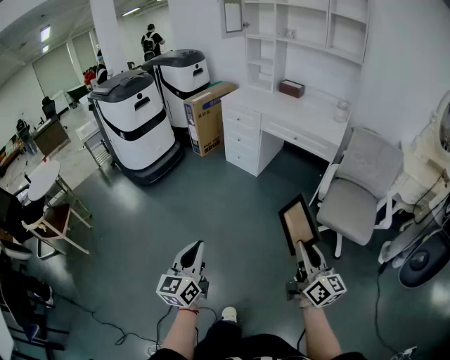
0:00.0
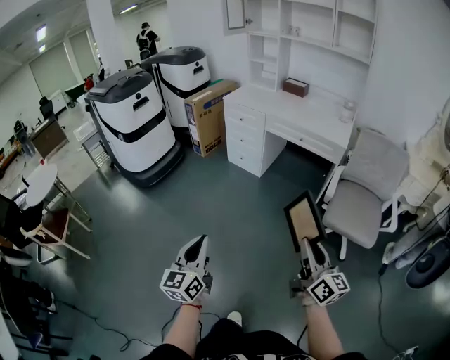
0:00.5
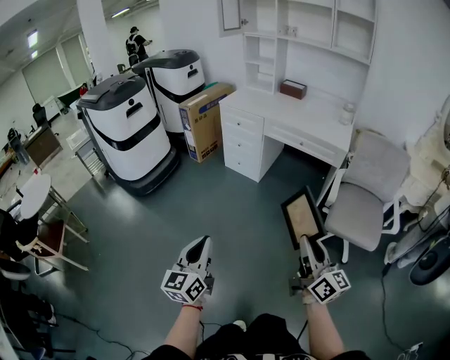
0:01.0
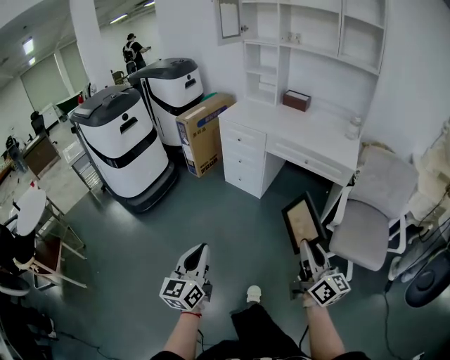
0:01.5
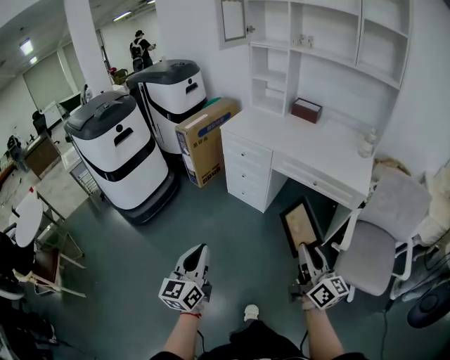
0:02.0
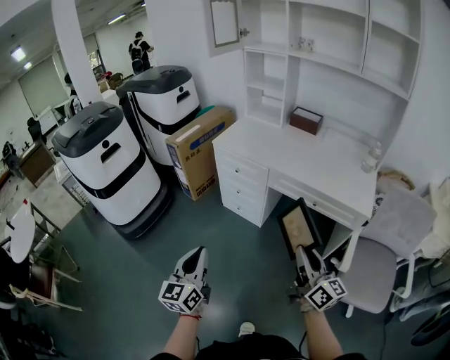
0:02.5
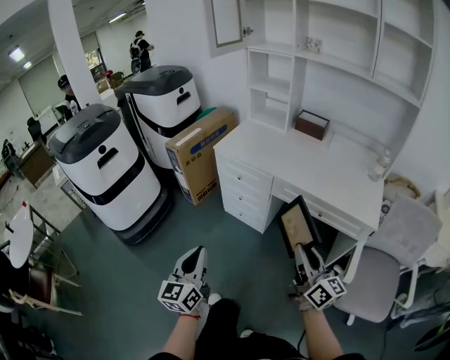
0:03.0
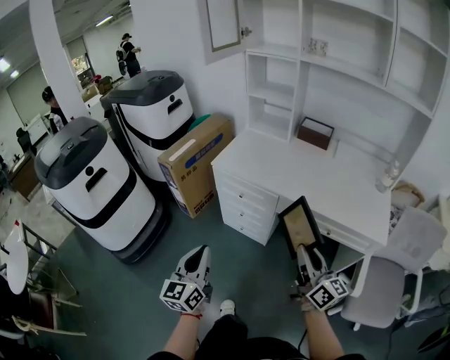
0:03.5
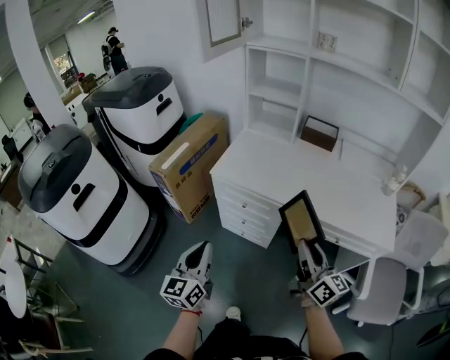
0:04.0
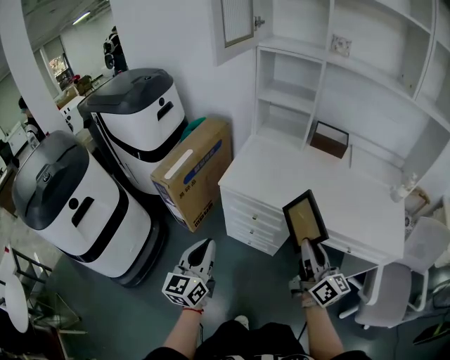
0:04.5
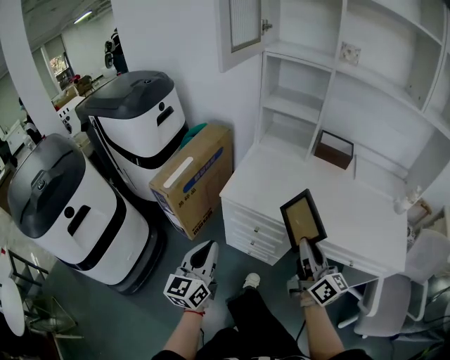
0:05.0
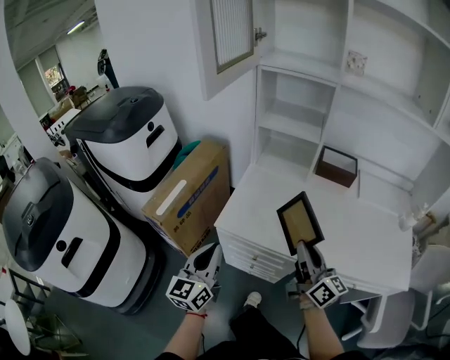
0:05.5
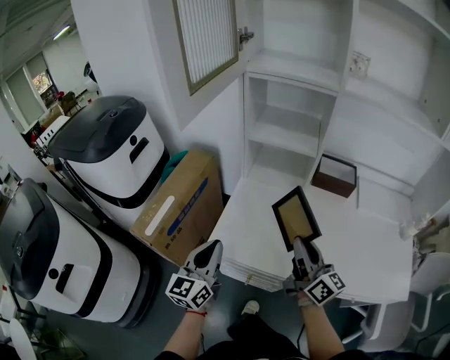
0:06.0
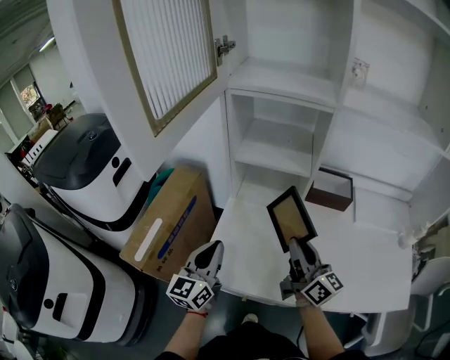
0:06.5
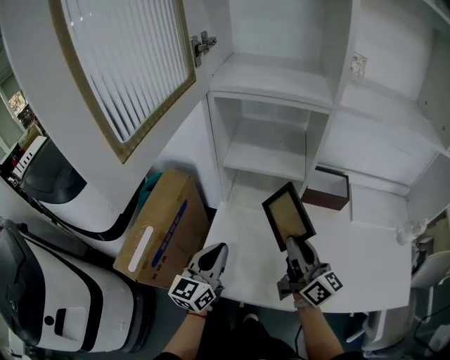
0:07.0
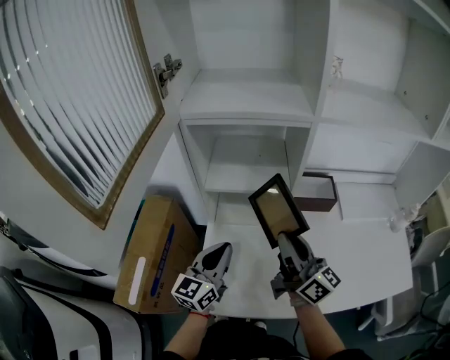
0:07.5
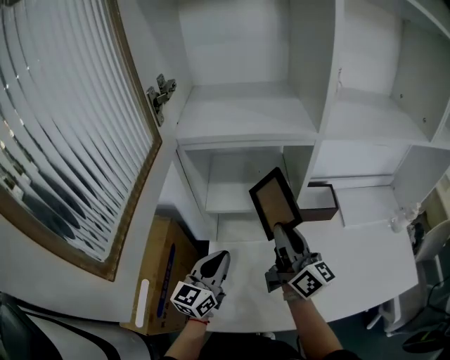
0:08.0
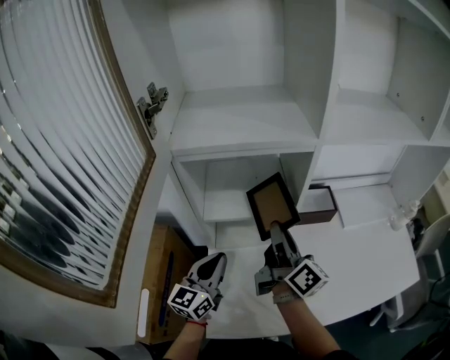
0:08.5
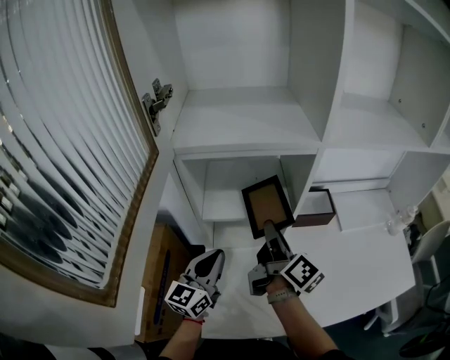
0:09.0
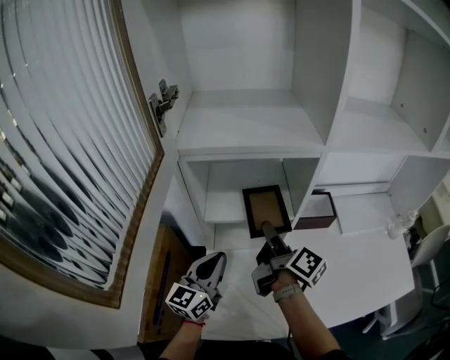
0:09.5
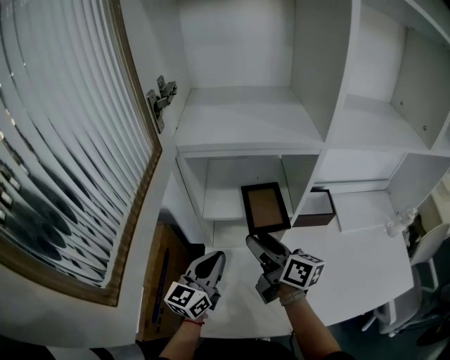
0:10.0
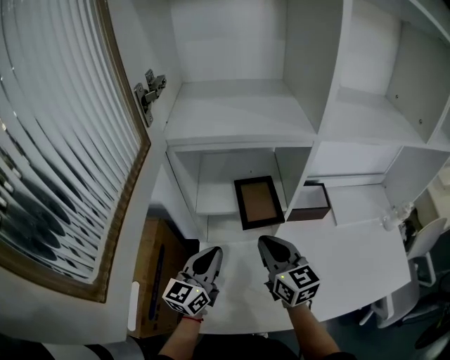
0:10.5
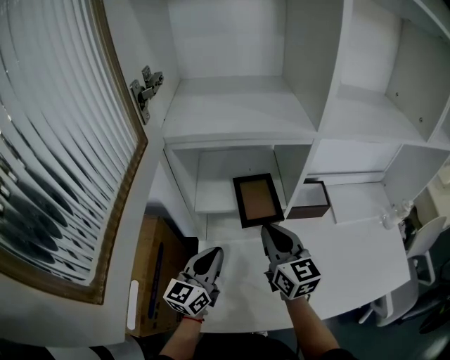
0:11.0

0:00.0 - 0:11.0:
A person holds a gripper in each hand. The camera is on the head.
0:00.0 - 0:02.0: Both grippers are carried forward, about 40 cm.
0:02.0 - 0:03.5: Both grippers move forward, roughly 35 cm.
0:03.5 - 0:05.5: Both grippers move forward, roughly 35 cm.
0:05.5 - 0:07.5: The grippers both shift forward by roughly 30 cm. The left gripper rotates approximately 30 degrees.
0:07.5 - 0:09.0: The right gripper travels forward by roughly 10 cm, and changes its angle by approximately 30 degrees; the left gripper heads forward, covering about 5 cm.
0:09.0 - 0:11.0: The right gripper twists some 50 degrees counterclockwise, seen from behind, and opens, then closes once more.

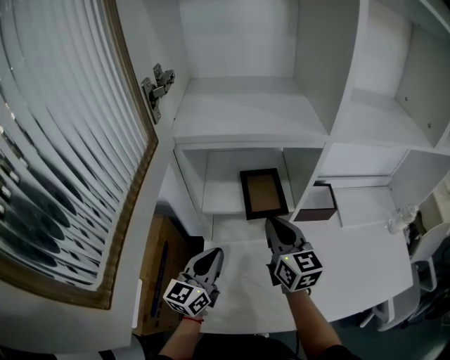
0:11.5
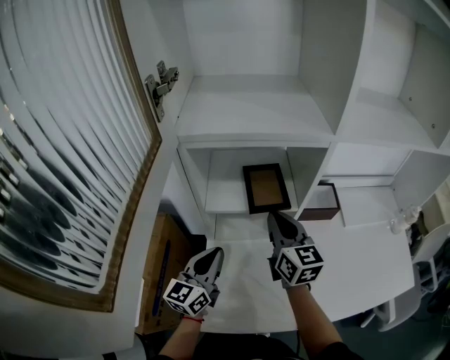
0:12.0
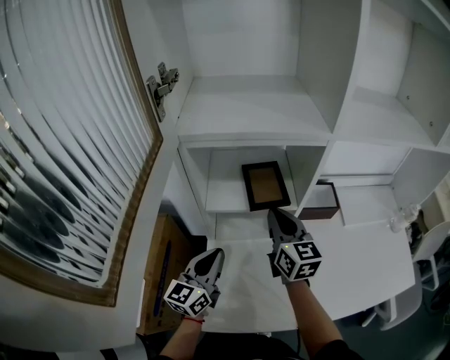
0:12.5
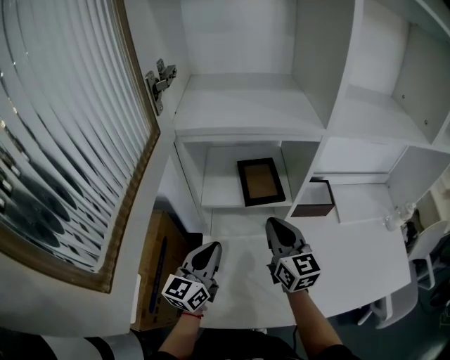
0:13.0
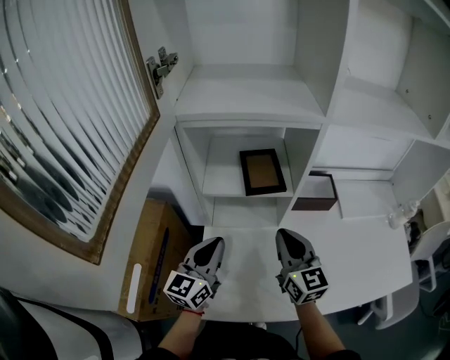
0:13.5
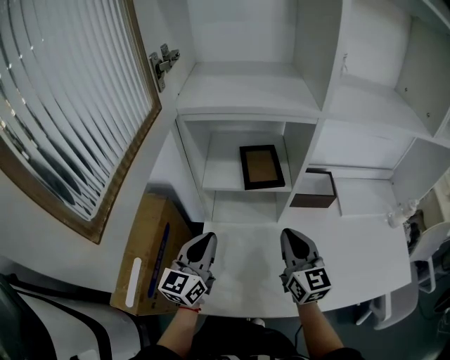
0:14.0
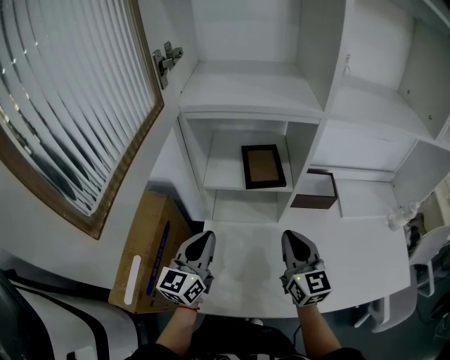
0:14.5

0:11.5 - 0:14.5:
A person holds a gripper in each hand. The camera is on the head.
0:11.5 - 0:13.0: The grippers stay close to where they were, moving slightly.
0:13.0 - 0:14.5: The right gripper moves backward, some 5 cm.

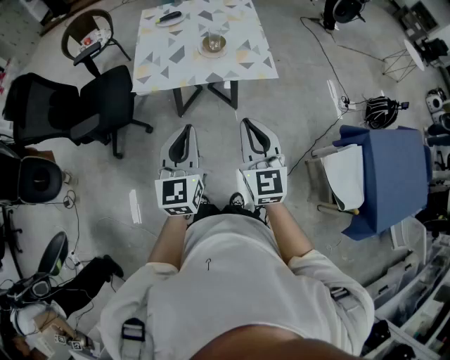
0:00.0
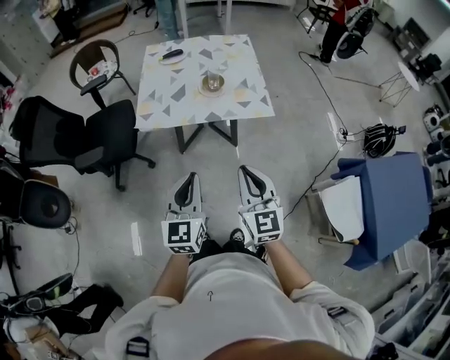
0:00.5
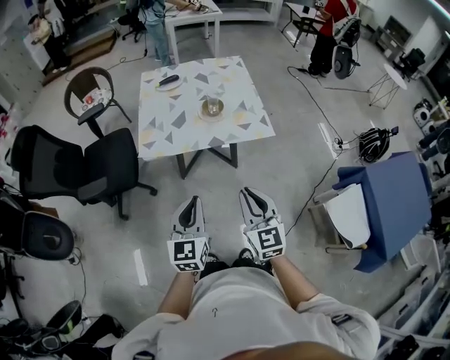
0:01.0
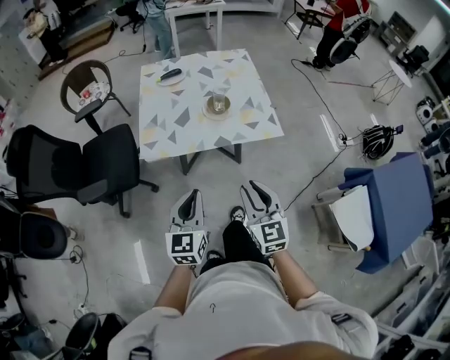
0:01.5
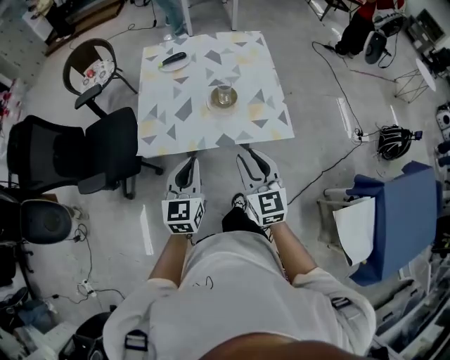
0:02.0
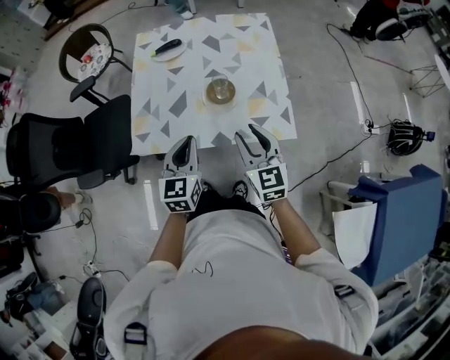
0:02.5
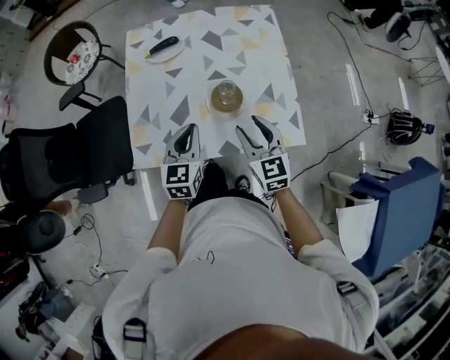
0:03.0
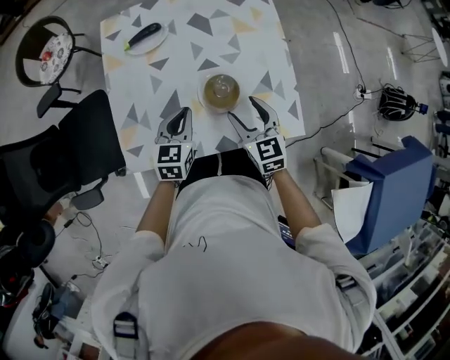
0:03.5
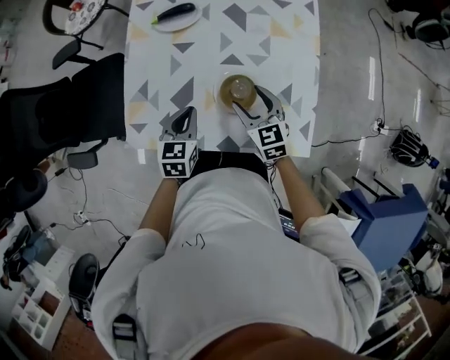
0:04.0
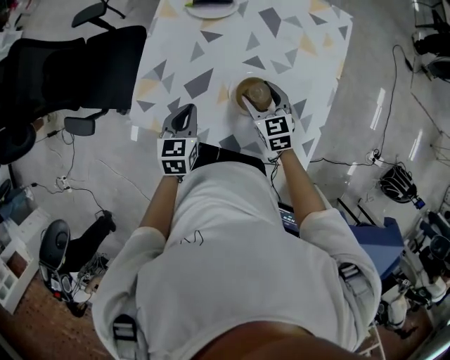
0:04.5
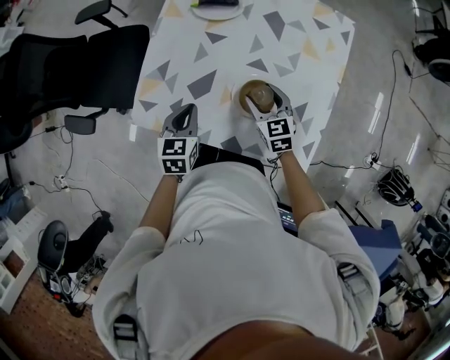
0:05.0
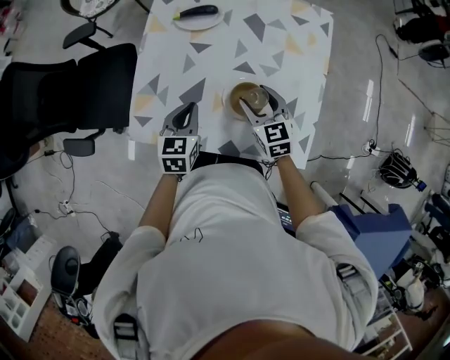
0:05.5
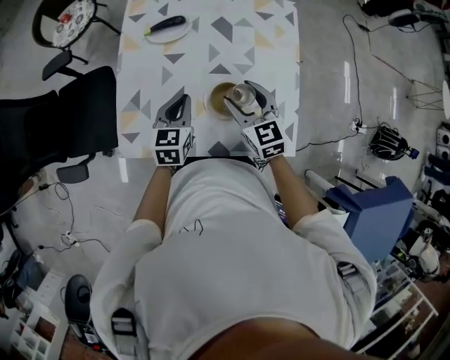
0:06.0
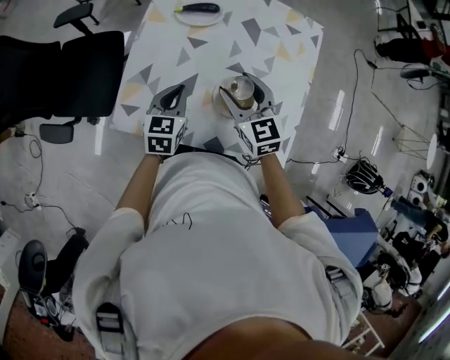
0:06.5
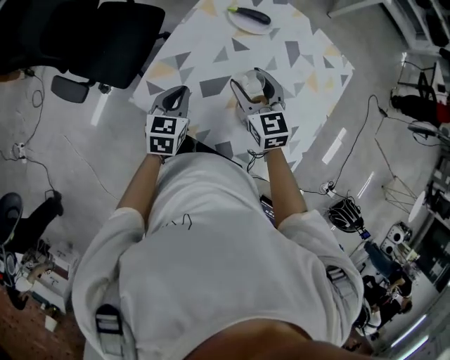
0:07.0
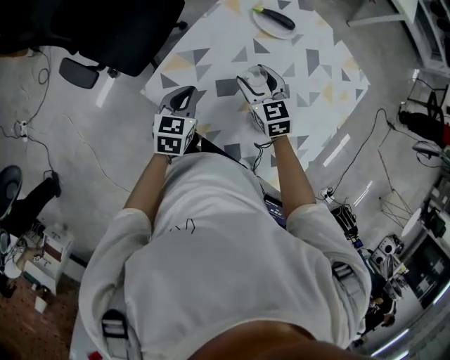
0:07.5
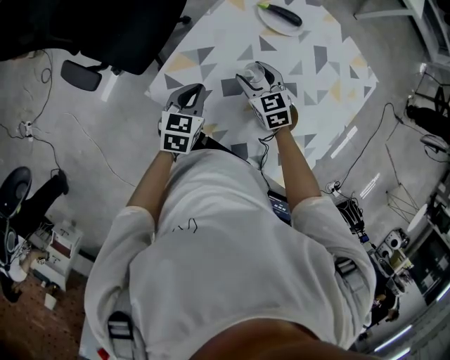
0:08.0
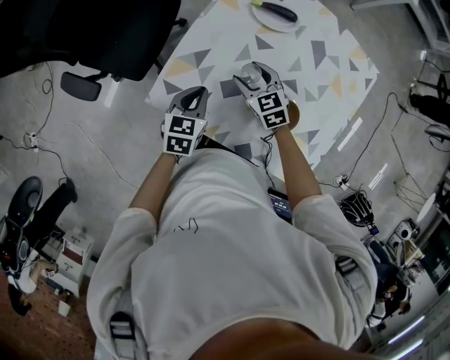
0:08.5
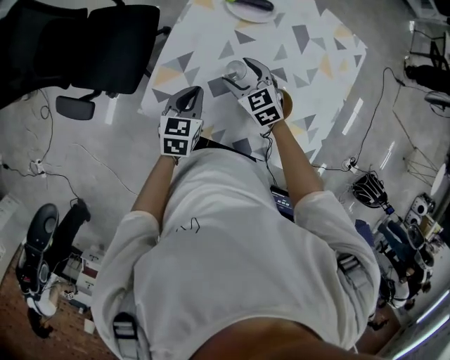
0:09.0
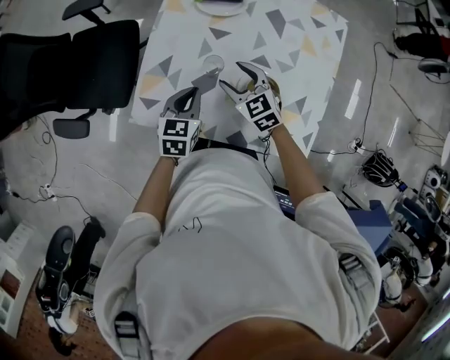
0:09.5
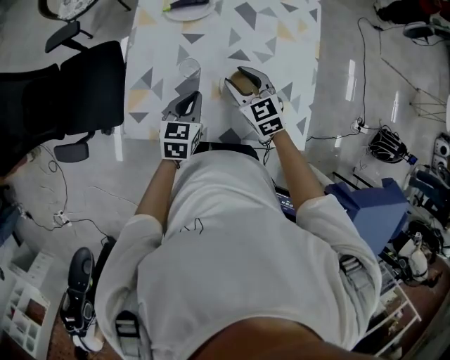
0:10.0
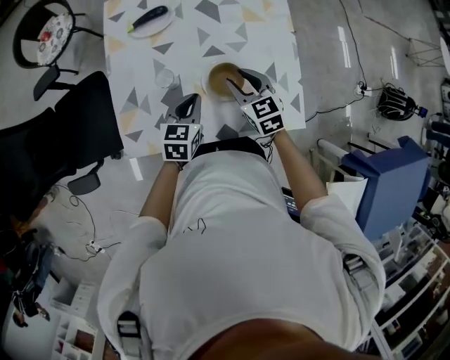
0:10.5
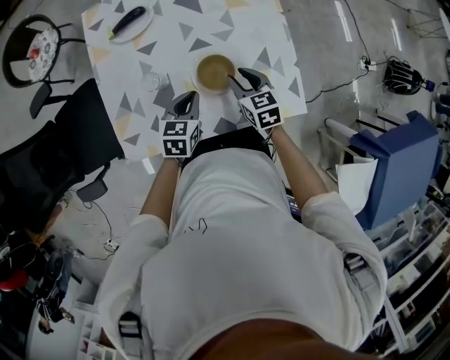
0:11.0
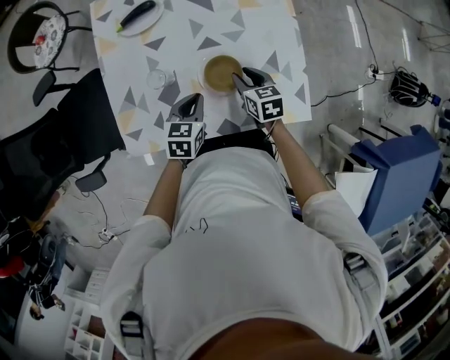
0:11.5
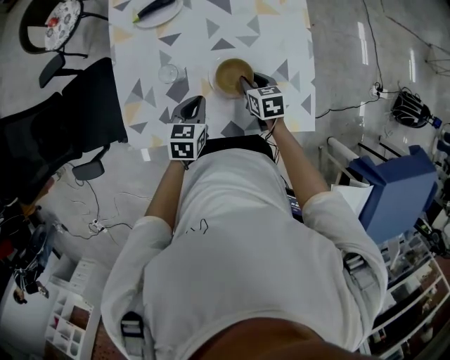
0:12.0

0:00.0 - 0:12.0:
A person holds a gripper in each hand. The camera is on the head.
0:00.0 - 0:02.0: The right gripper goes roughly 20 cm forward and downward, and opens. The left gripper travels forward by approximately 20 cm.
0:02.0 - 0:04.0: Both grippers travel together forward and downward, some 35 cm. The left gripper turns by some 30 degrees. The right gripper swivels approximately 30 degrees, and opens up.
0:04.0 - 0:06.0: The right gripper is displaced upward by some 10 cm. Meanwhile the left gripper moves roughly 5 cm.
0:06.0 - 0:08.0: The left gripper shifts by about 20 cm, and rotates roughly 20 degrees. The right gripper changes place by roughly 25 cm, and turns by roughly 40 degrees.
0:08.0 - 0:10.0: The left gripper ends up some 15 cm from where it was, and turns by about 20 degrees. The right gripper shifts by some 15 cm, and changes its angle by some 20 degrees.
0:10.0 - 0:12.0: The right gripper goes about 15 cm downward and to the right, and rotates about 40 degrees; the left gripper goes about 5 cm to the right.
